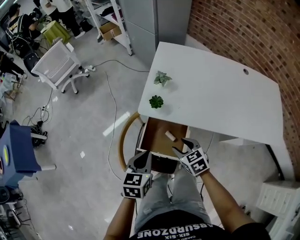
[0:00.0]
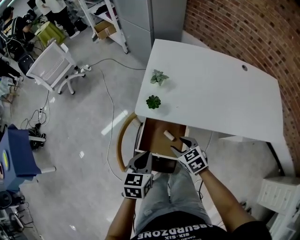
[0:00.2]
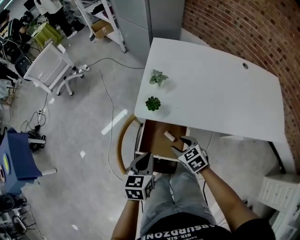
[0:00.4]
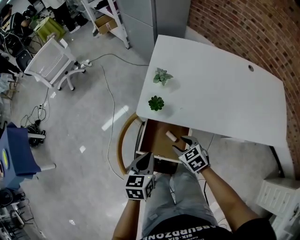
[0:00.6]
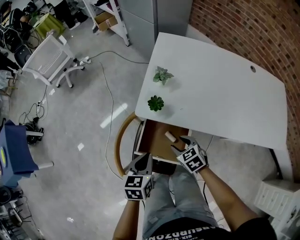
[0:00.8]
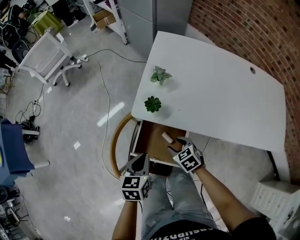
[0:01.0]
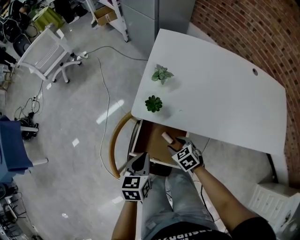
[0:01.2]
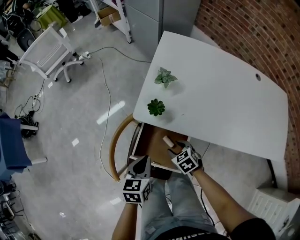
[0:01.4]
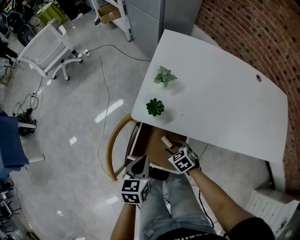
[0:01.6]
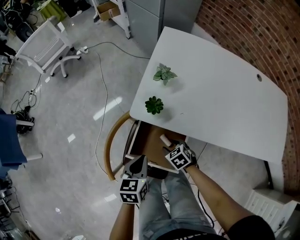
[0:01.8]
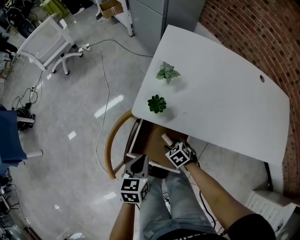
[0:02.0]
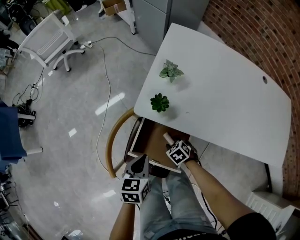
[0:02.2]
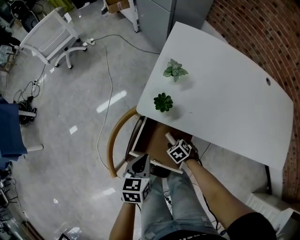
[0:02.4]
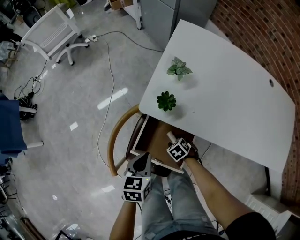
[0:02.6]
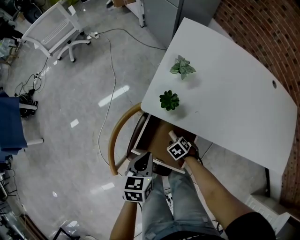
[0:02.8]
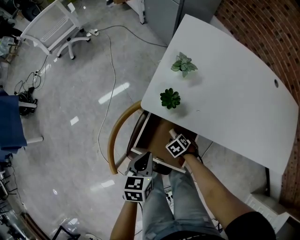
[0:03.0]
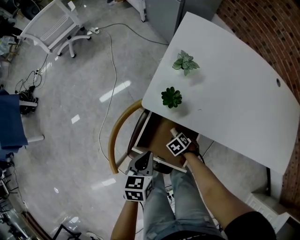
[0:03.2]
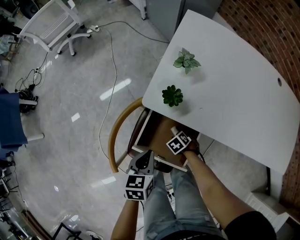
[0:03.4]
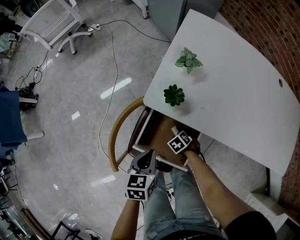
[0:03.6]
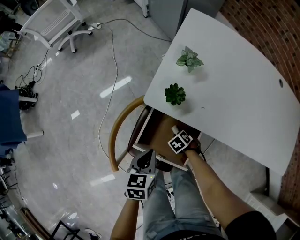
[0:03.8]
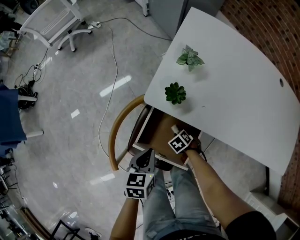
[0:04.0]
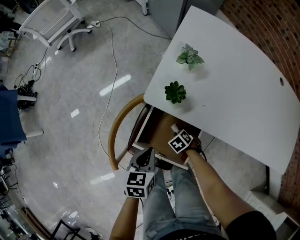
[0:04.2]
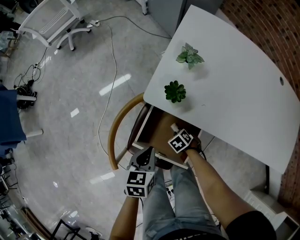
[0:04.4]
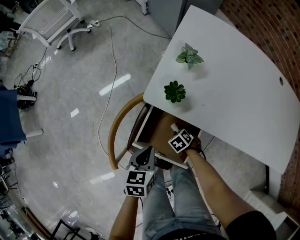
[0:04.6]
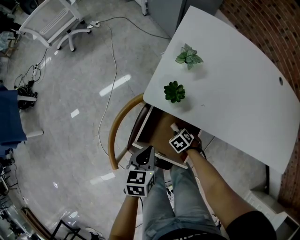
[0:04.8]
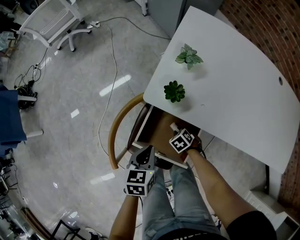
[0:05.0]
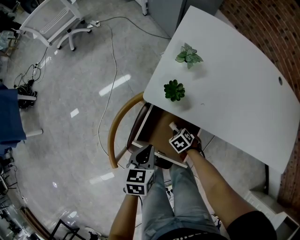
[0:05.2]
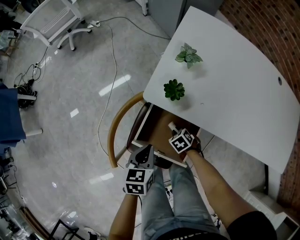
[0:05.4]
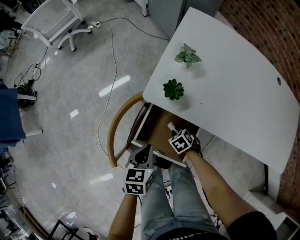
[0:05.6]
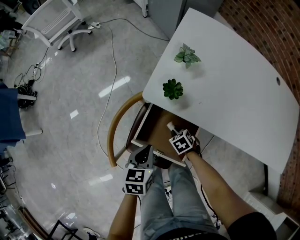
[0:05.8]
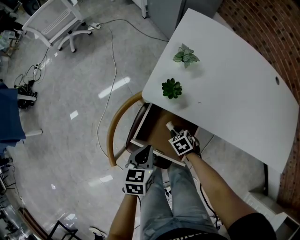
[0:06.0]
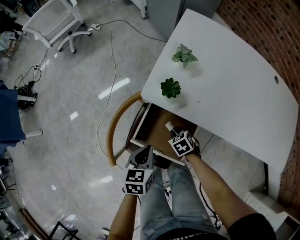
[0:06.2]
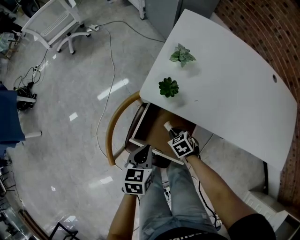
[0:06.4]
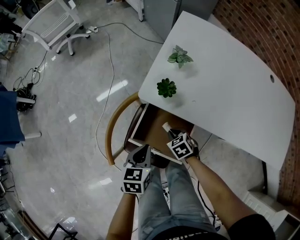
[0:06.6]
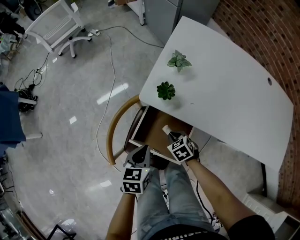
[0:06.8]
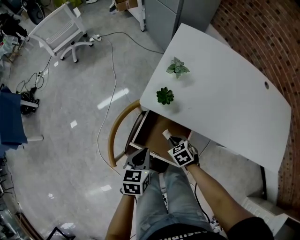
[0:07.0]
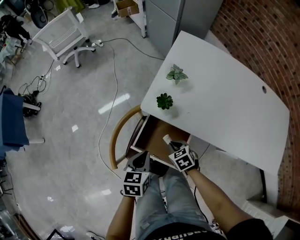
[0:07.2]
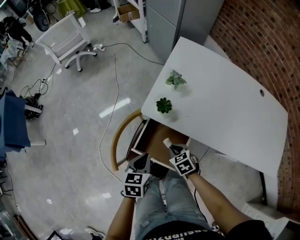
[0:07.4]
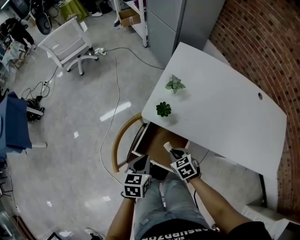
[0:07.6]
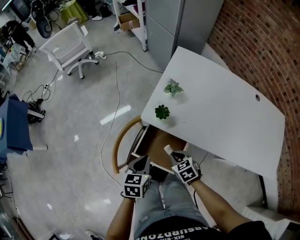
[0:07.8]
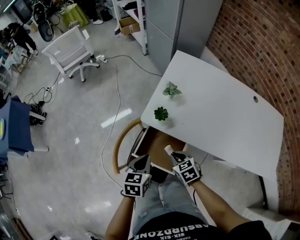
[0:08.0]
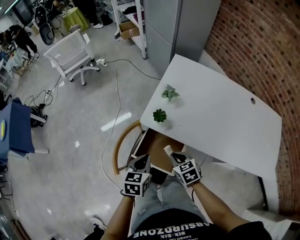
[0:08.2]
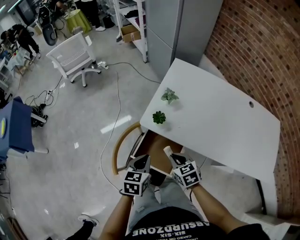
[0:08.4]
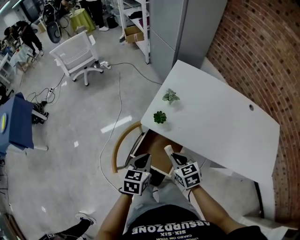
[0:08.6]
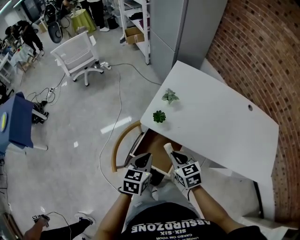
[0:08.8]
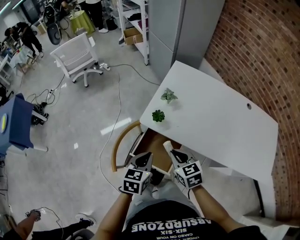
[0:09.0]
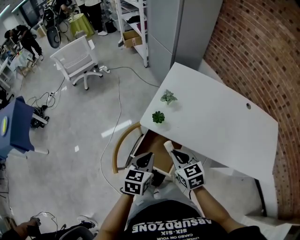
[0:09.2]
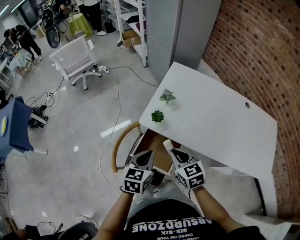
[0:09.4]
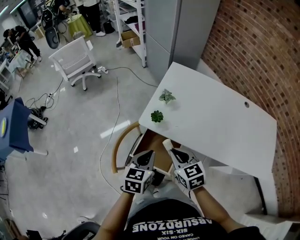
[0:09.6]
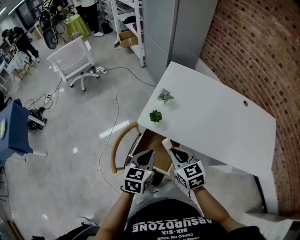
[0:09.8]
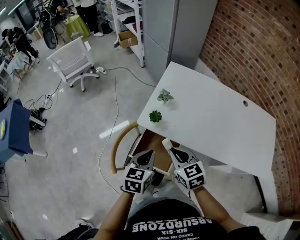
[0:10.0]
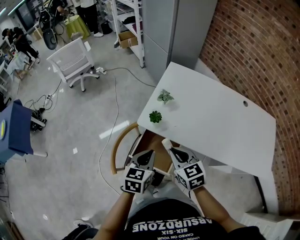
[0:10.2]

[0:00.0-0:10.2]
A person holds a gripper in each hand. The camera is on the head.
0:00.0 to 0:01.4: The left gripper is displaced downward and forward by roughly 10 cm. The right gripper is displaced downward by roughly 15 cm.
0:01.4 to 0:03.0: The right gripper is displaced downward by about 15 cm, and swivels roughly 20 degrees. The left gripper is displaced downward by approximately 5 cm.
0:03.0 to 0:04.4: The right gripper closes up.
0:04.4 to 0:05.8: There are only small adjustments of the grippers.
0:05.8 to 0:07.2: The right gripper moves upward, approximately 15 cm, while the left gripper shifts roughly 5 cm upward.
0:07.2 to 0:08.8: The right gripper shifts approximately 20 cm upward. The left gripper heads upward, covering roughly 10 cm.
0:08.8 to 0:10.2: The right gripper is displaced upward by about 5 cm.

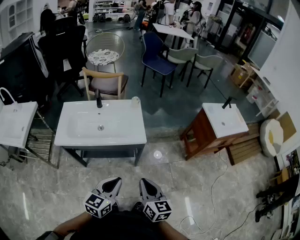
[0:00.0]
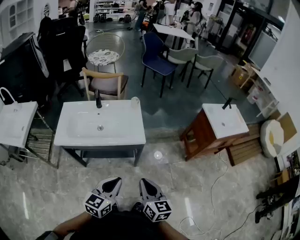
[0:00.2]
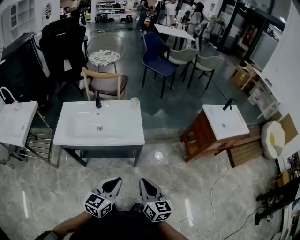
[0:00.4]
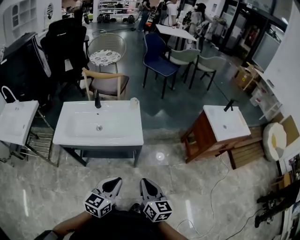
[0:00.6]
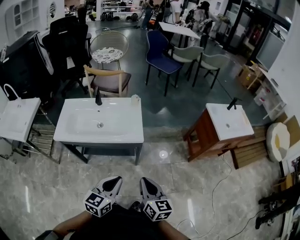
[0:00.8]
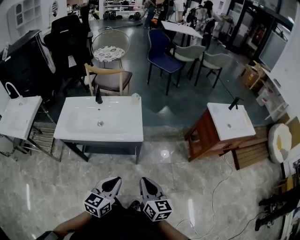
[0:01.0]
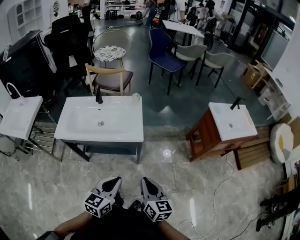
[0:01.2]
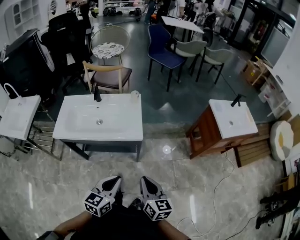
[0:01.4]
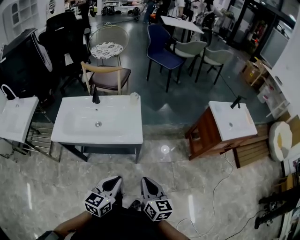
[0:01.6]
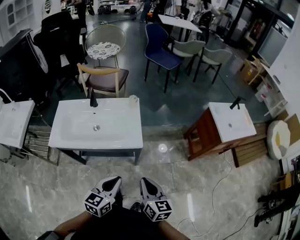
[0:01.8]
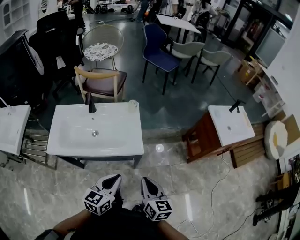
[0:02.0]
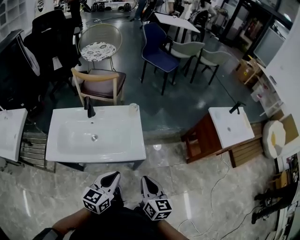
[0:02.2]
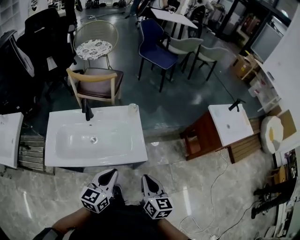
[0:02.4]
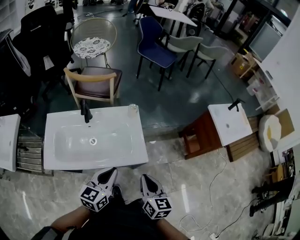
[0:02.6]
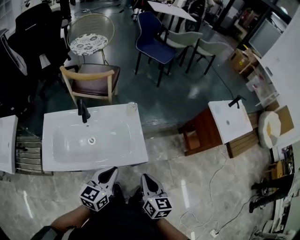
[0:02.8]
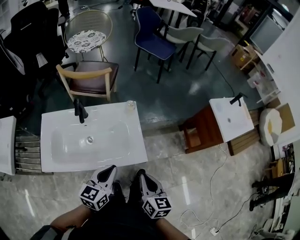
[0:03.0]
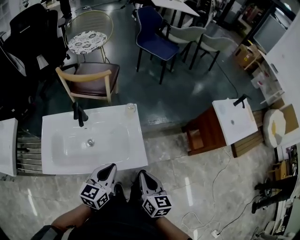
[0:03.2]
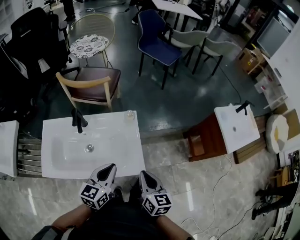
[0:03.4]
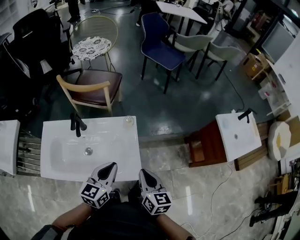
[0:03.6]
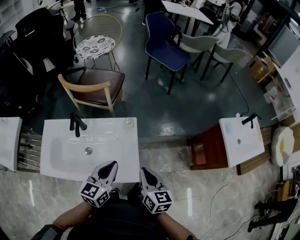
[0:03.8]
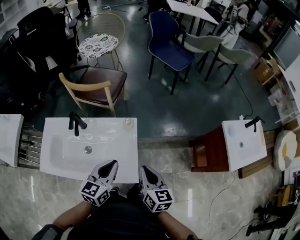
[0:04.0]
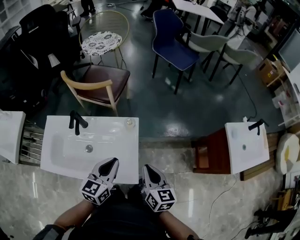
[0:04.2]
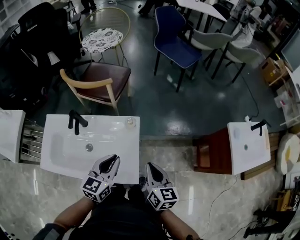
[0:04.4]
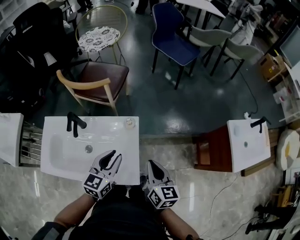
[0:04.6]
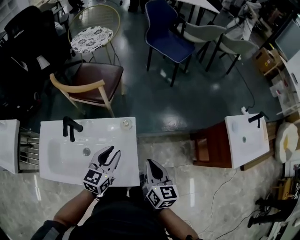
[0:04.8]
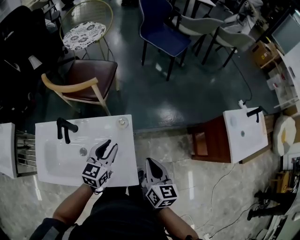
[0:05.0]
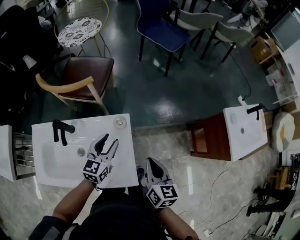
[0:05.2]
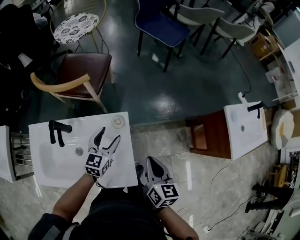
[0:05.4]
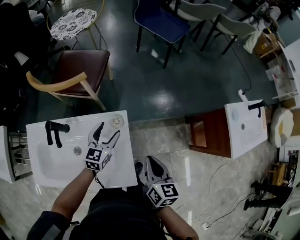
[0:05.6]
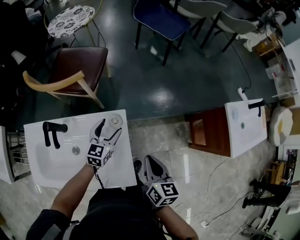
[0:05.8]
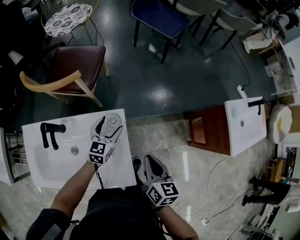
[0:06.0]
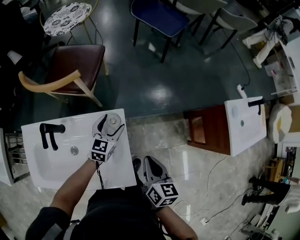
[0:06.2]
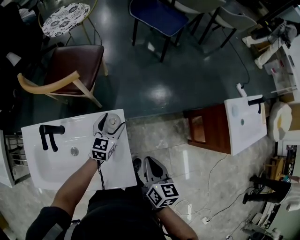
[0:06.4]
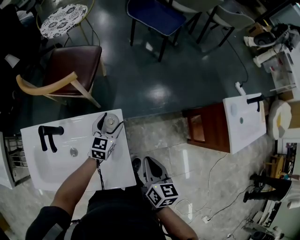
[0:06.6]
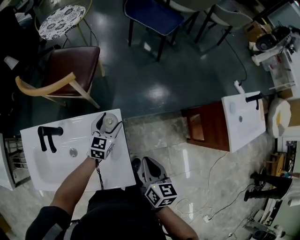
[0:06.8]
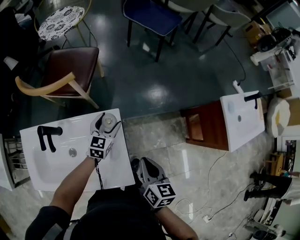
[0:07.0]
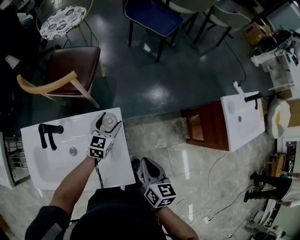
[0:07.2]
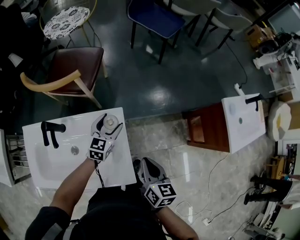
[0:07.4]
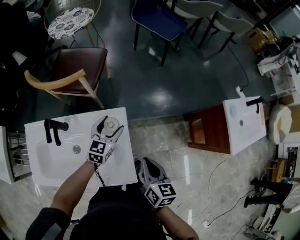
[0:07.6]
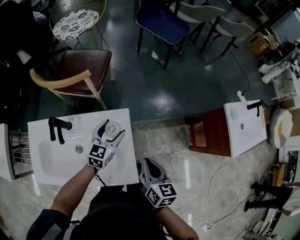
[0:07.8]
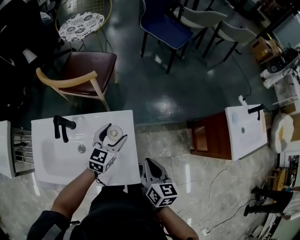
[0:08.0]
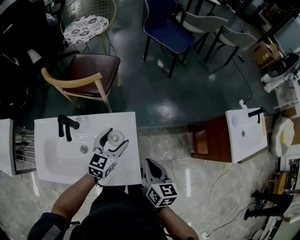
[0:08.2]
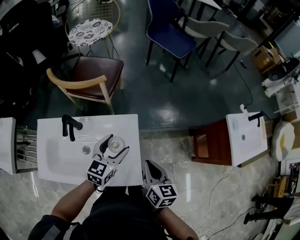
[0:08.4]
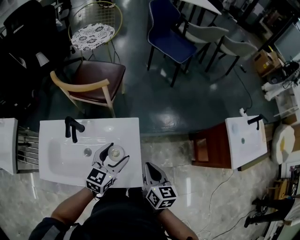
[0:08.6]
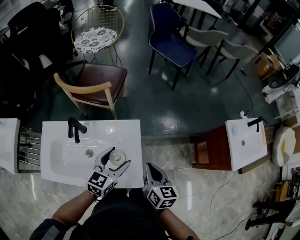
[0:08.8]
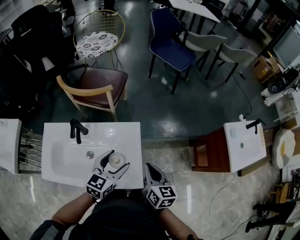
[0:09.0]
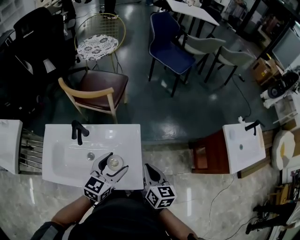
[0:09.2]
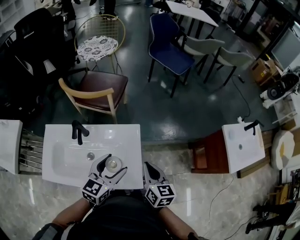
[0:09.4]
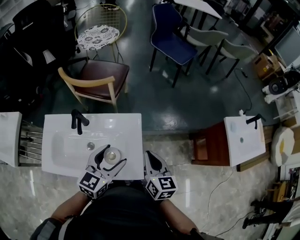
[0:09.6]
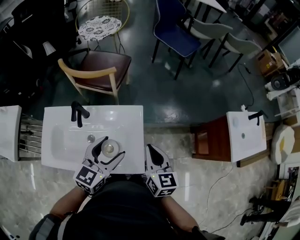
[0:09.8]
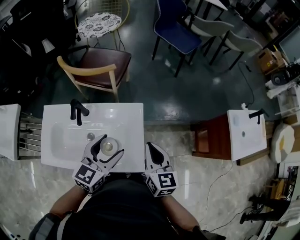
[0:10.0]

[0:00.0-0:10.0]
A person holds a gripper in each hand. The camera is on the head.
0:00.0 to 0:01.4: Both grippers travel together to the right, approximately 5 cm.
0:01.4 to 0:02.8: Both grippers travel together forward and to the left, some 25 cm.
0:02.8 to 0:04.2: The two grippers go some 20 cm forward.
0:04.2 to 0:05.8: The right gripper moves forward and downward, approximately 10 cm. The left gripper is displaced forward and downward by approximately 25 cm, and opens up.
0:05.8 to 0:07.2: The grippers make only small movements.
0:07.2 to 0:08.6: The right gripper goes some 5 cm to the left; the left gripper travels backward and upward by approximately 20 cm.
0:08.6 to 0:10.0: The right gripper is displaced upward by roughly 5 cm. The left gripper goes roughly 10 cm upward and backward.

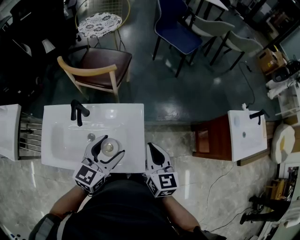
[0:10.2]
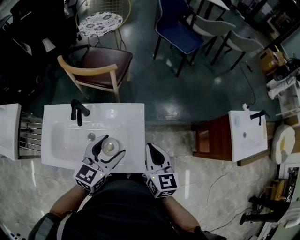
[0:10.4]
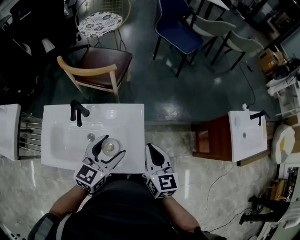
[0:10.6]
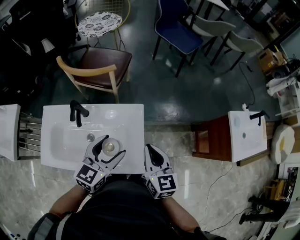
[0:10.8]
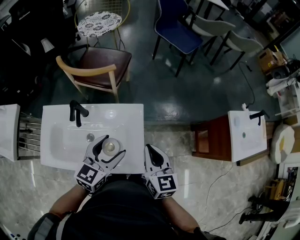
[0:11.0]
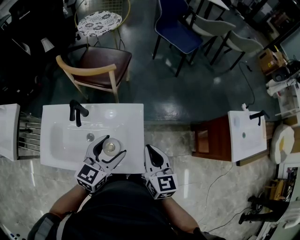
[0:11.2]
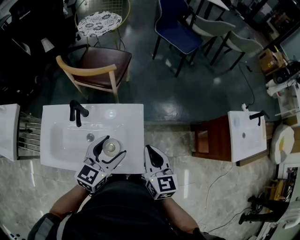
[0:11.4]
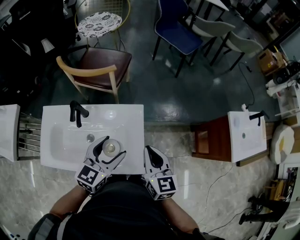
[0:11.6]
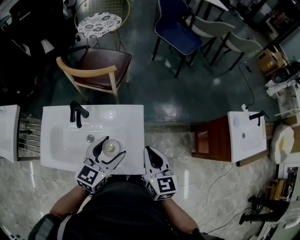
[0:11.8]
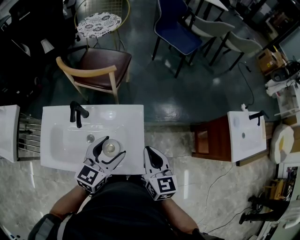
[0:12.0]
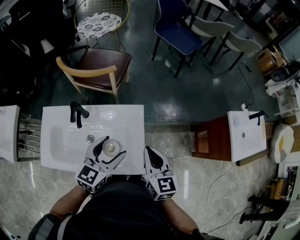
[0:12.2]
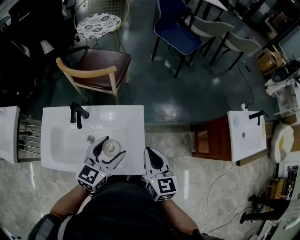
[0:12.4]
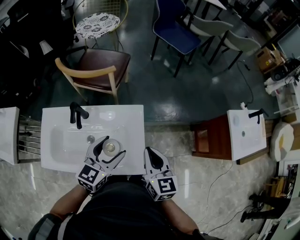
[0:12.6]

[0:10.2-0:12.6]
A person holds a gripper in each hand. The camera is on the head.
0:10.2 to 0:12.6: The grippers stay close to where they were, moving slightly.

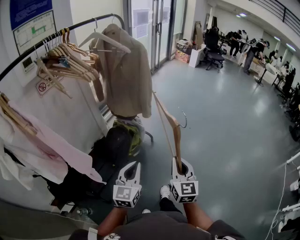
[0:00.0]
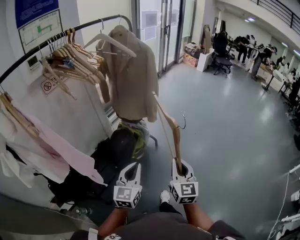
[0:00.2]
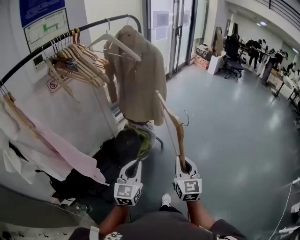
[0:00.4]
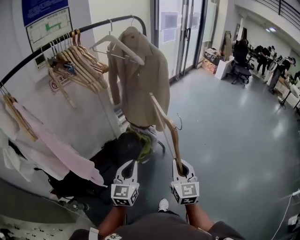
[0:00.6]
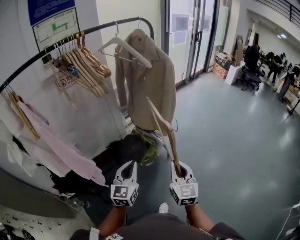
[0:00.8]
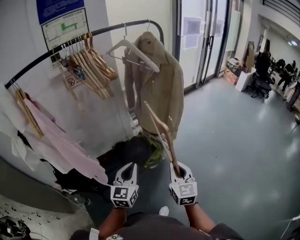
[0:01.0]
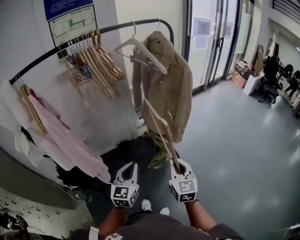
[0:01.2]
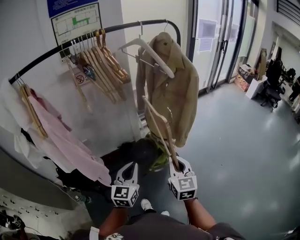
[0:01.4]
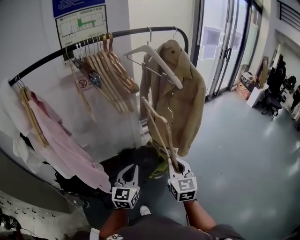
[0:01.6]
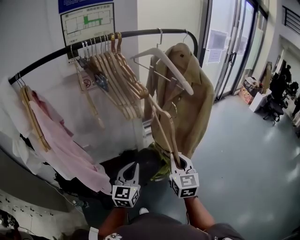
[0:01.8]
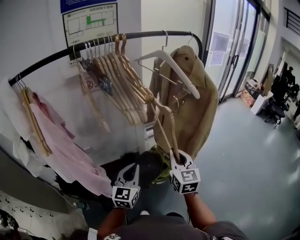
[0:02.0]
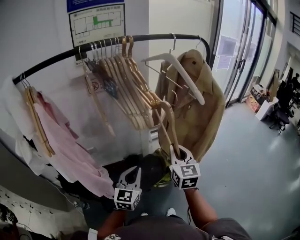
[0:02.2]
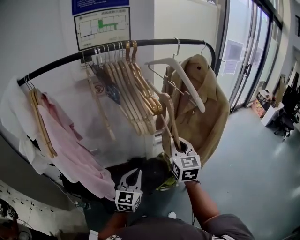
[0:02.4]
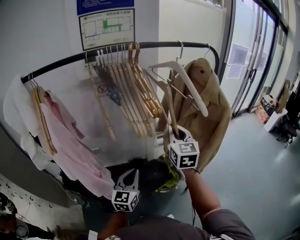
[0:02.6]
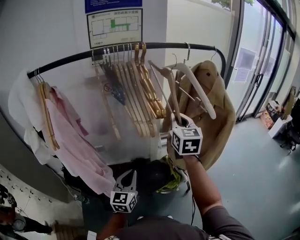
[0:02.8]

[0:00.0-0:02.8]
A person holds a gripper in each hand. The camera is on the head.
0:00.0 to 0:01.4: The left gripper moves approximately 15 cm, and rotates roughly 30 degrees; the right gripper shifts by about 25 cm, and changes its angle by about 30 degrees.
0:01.4 to 0:02.8: The right gripper travels forward and upward by roughly 35 cm; the left gripper travels forward and to the left by approximately 15 cm.
